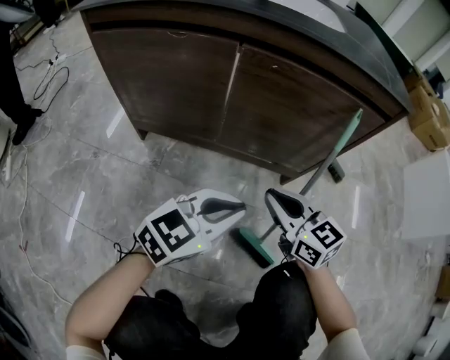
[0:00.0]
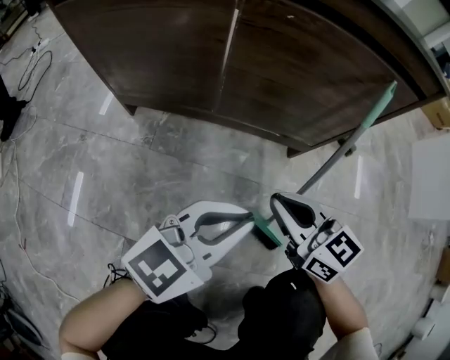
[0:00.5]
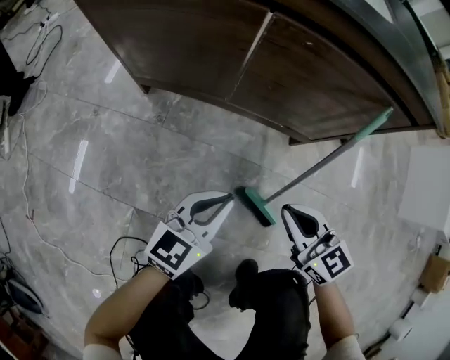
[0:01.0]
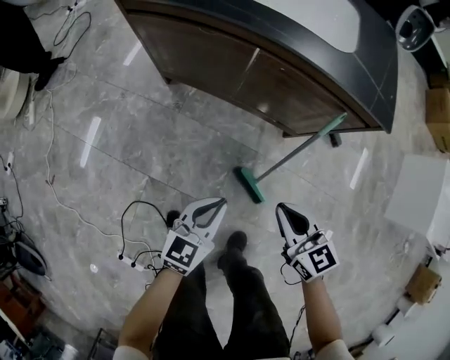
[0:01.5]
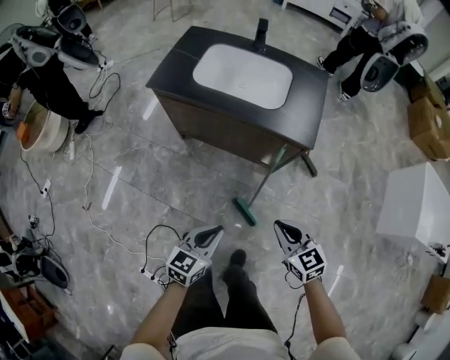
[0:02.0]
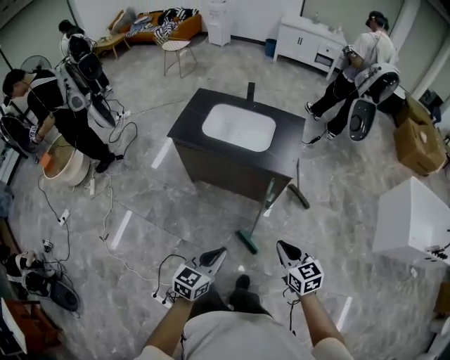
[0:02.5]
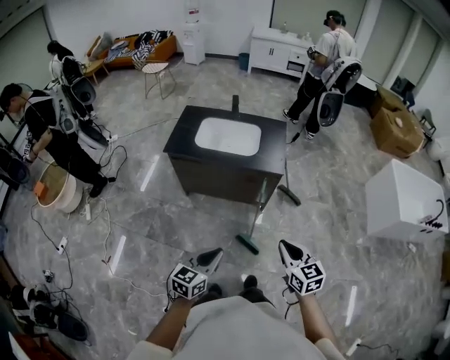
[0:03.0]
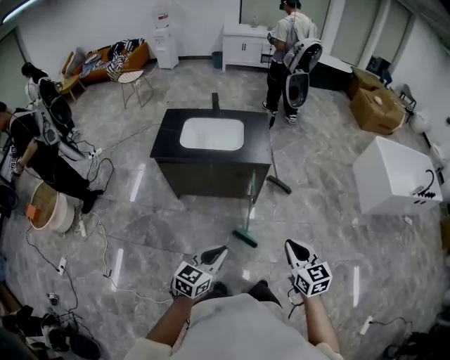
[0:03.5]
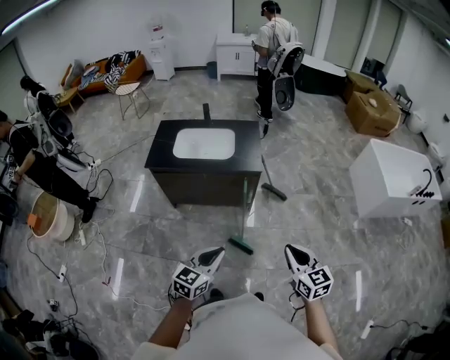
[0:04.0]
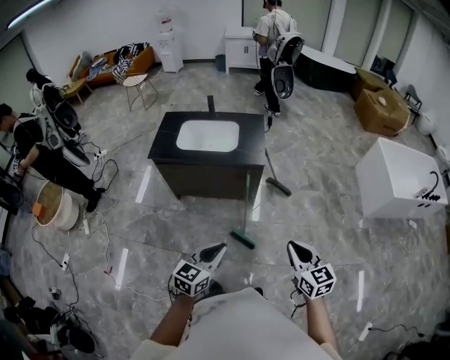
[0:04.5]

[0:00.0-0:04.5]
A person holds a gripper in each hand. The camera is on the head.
0:00.0 to 0:02.0: The two grippers go some 40 cm upward. The left gripper swivels roughly 40 degrees.
0:02.0 to 0:04.5: The right gripper heads upward, backward and to the right, covering some 40 cm, and swivels about 30 degrees. The left gripper moves upward and backward, approximately 35 cm.

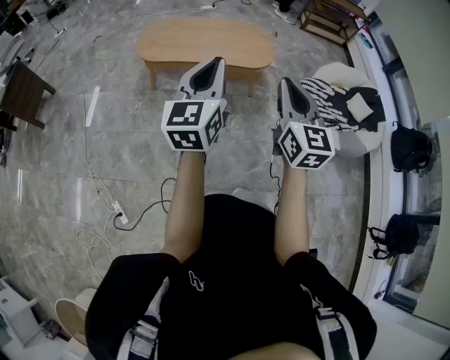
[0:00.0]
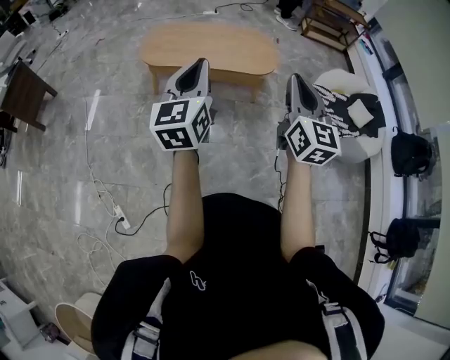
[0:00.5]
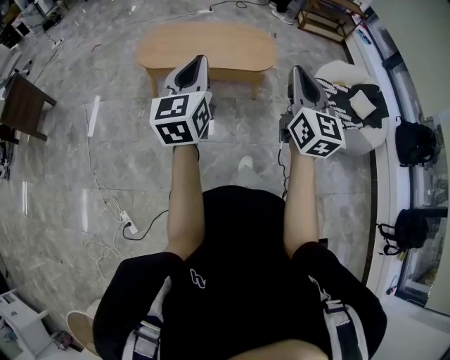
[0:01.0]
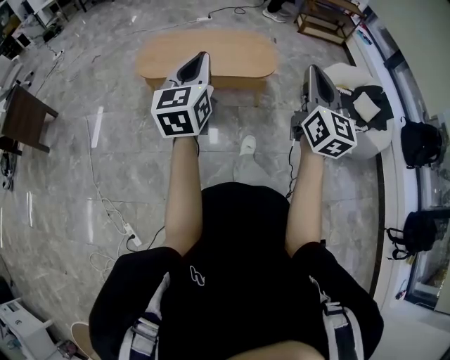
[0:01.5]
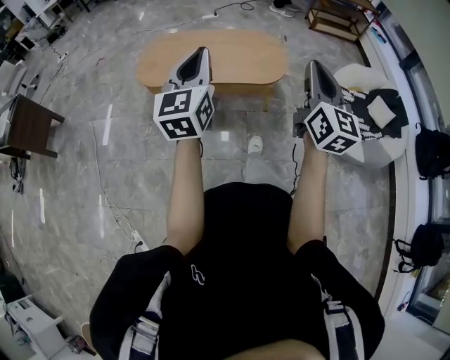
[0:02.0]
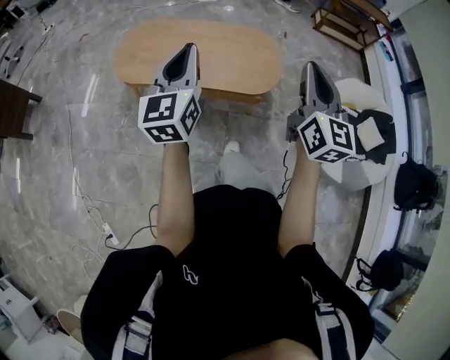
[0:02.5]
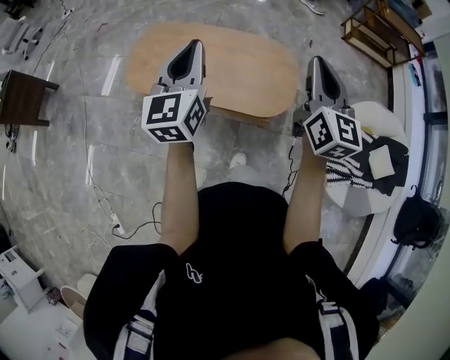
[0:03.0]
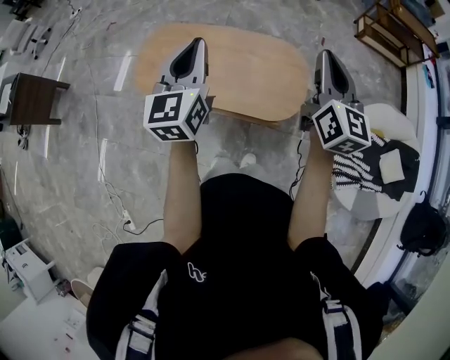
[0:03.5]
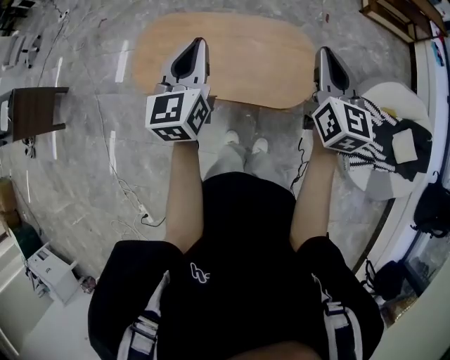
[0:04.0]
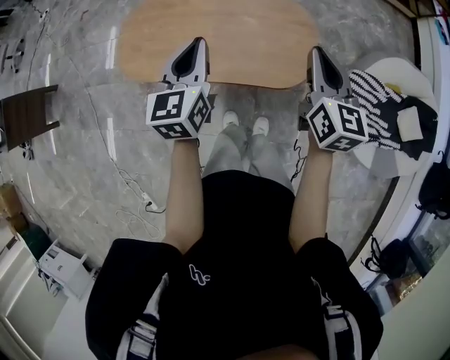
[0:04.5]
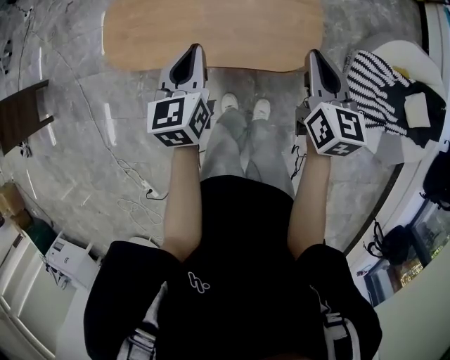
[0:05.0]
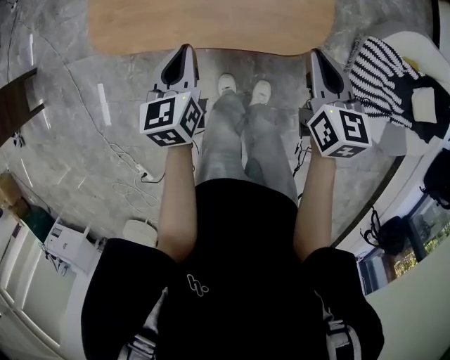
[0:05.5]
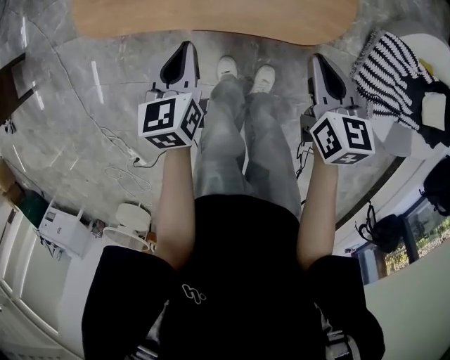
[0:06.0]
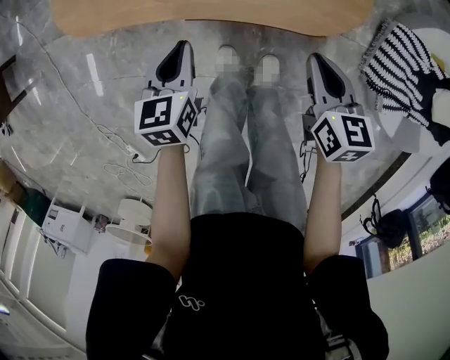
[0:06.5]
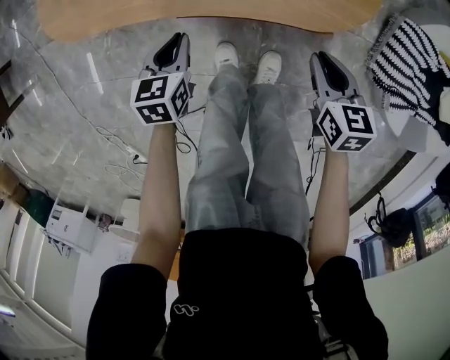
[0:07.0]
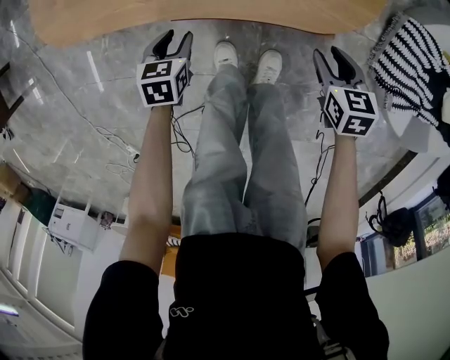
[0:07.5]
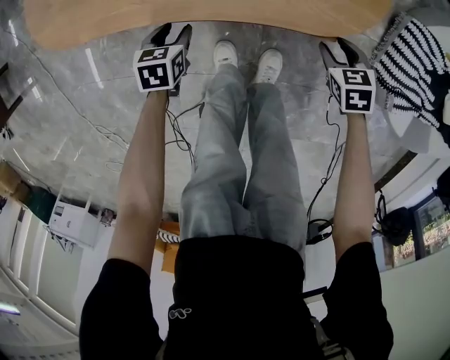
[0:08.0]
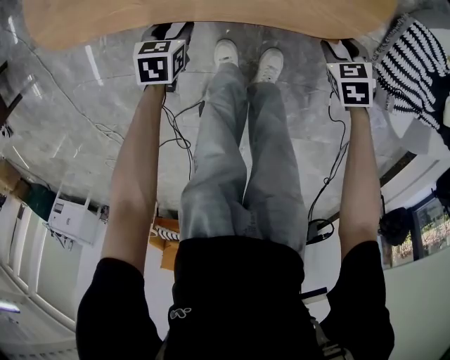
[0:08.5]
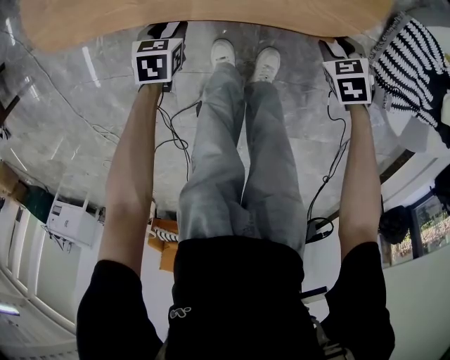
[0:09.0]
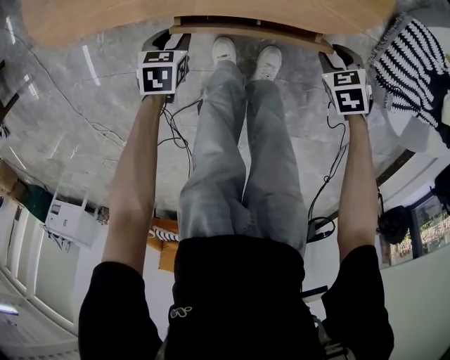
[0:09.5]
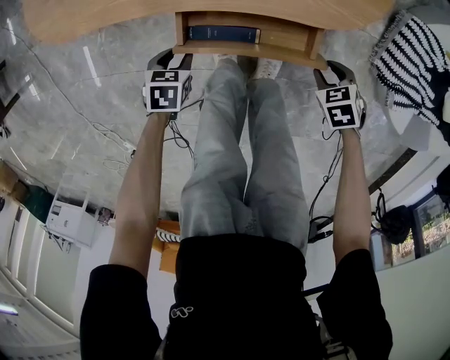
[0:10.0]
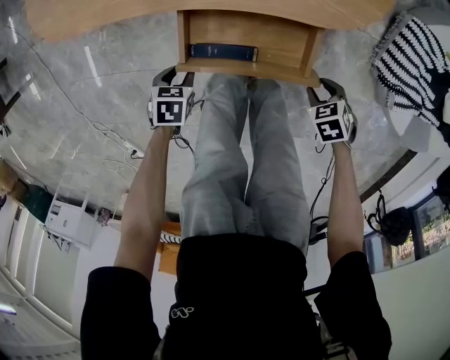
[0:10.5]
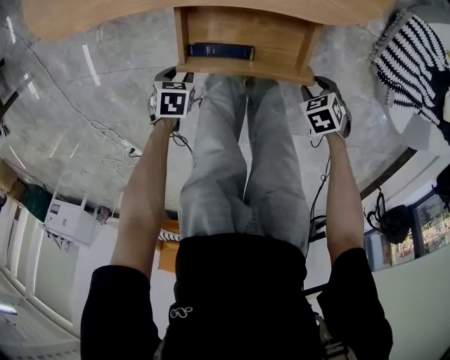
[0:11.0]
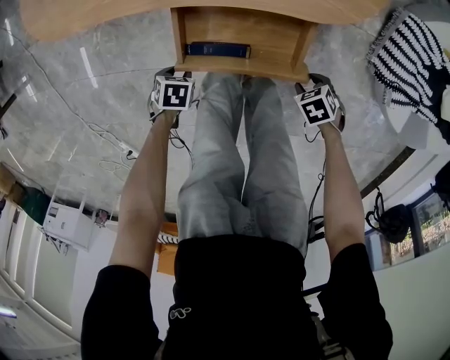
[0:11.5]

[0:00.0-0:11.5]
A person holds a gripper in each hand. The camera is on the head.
0:00.0 to 0:02.0: The two grippers go approximately 20 cm forward.
0:02.0 to 0:04.0: The pair of grippers is taken forward, about 50 cm.
0:04.0 to 0:06.0: Both grippers move downward, some 35 cm. The right gripper rotates approximately 30 degrees, while the left gripper swivels approximately 30 degrees.
0:06.0 to 0:07.5: The two grippers go about 25 cm downward. The left gripper rotates some 30 degrees, and opens its fingers, while the right gripper turns by about 20 degrees, and opens.
0:07.5 to 0:09.5: The right gripper goes roughly 5 cm downward, and turns by approximately 30 degrees.
0:09.5 to 0:11.5: The right gripper ends up approximately 15 cm from where it was. Meanwhile the left gripper moves approximately 15 cm, and swivels approximately 20 degrees.

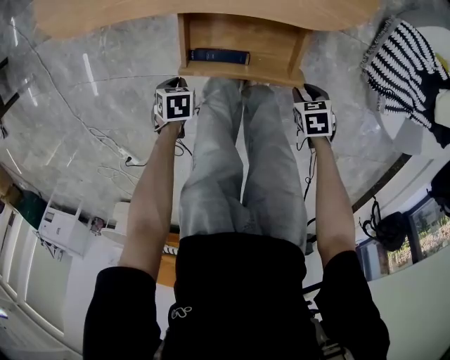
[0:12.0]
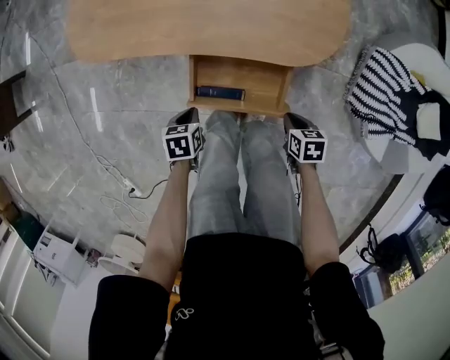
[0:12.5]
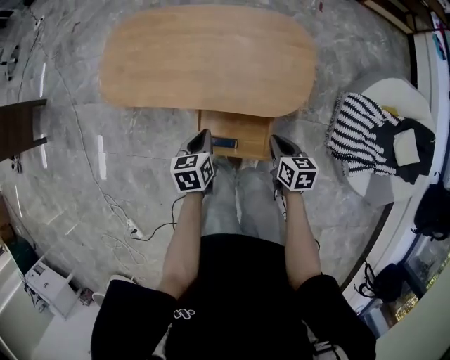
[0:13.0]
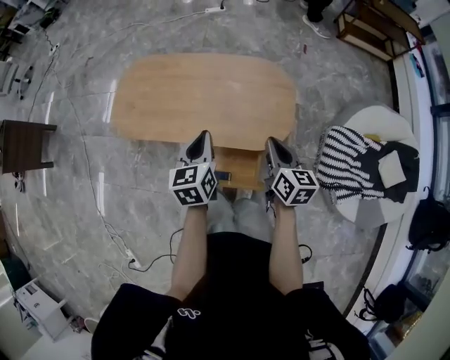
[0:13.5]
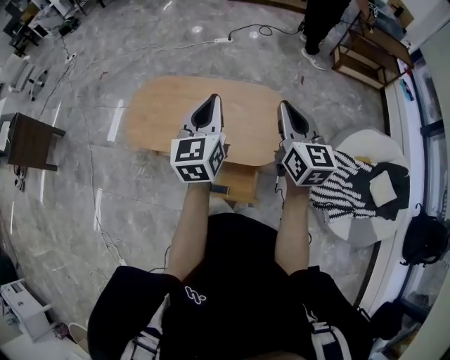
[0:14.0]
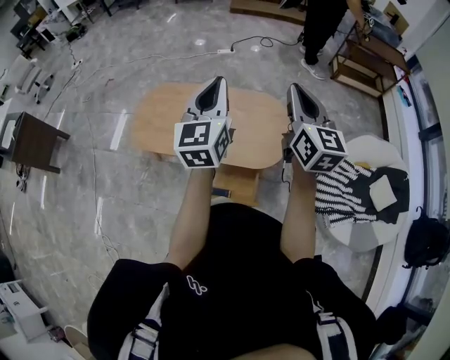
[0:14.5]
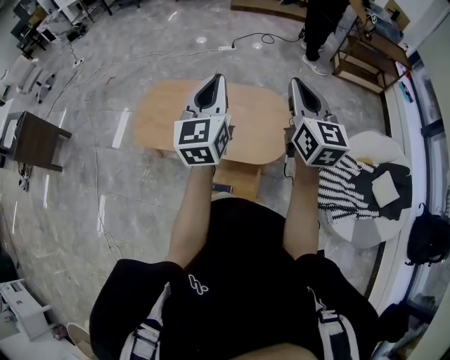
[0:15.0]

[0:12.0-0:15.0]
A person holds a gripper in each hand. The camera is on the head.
0:12.0 to 0:13.5: Both grippers travel together upward, some 50 cm. The left gripper points its fingers some 60 degrees further upward. The right gripper points its fingers some 50 degrees further upward, and closes.
0:13.5 to 0:15.0: The grippers both shift upward by some 30 cm. The left gripper rotates some 30 degrees. The right gripper swivels approximately 30 degrees.

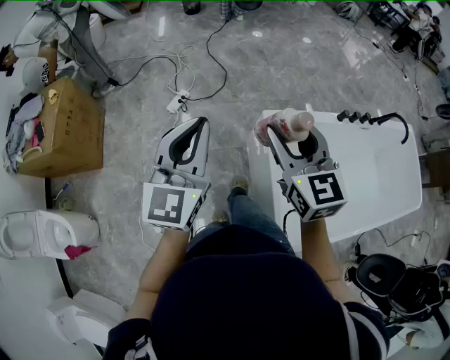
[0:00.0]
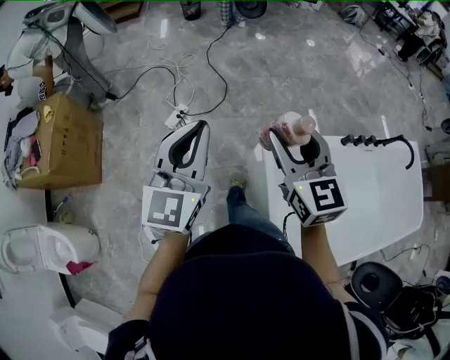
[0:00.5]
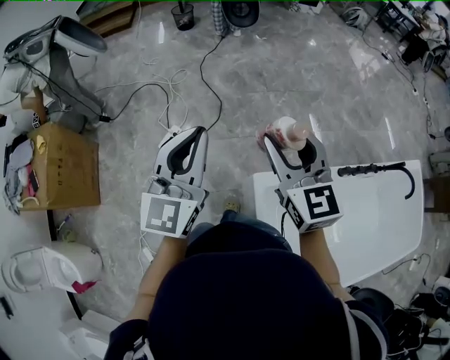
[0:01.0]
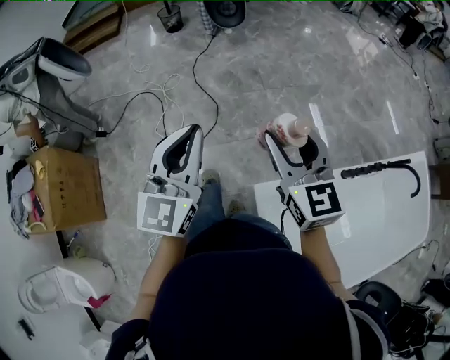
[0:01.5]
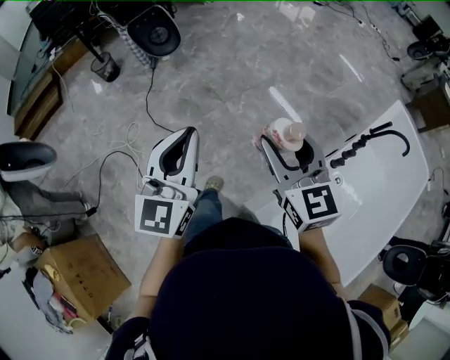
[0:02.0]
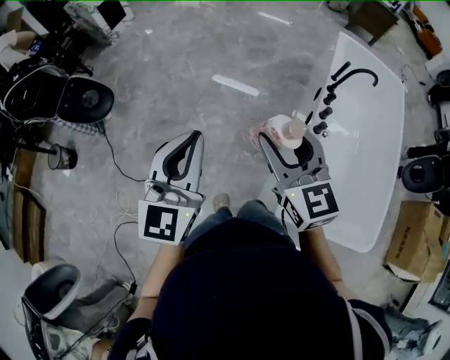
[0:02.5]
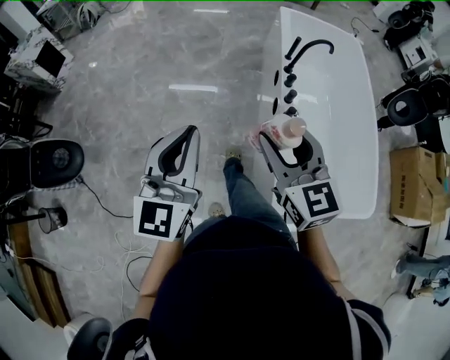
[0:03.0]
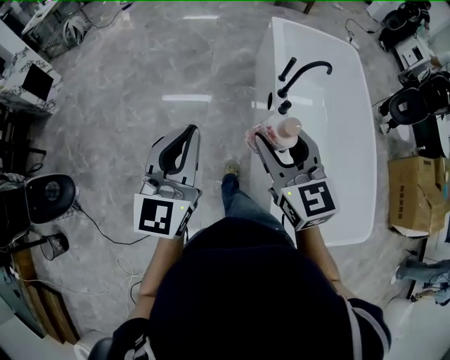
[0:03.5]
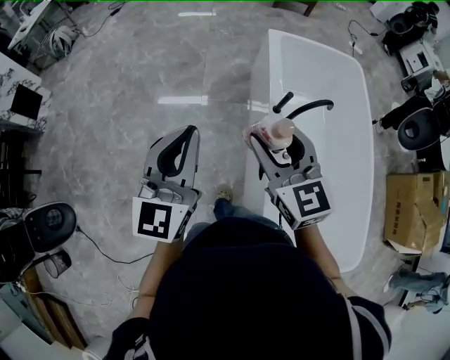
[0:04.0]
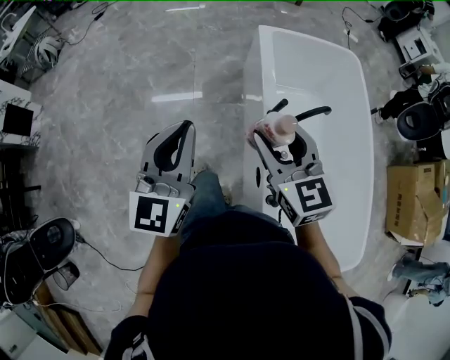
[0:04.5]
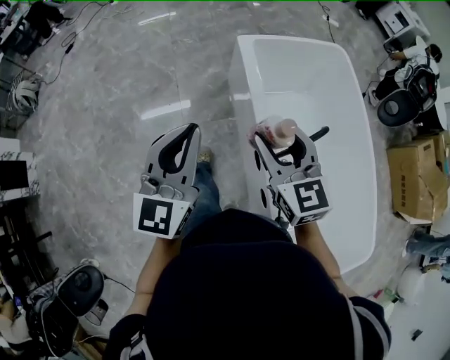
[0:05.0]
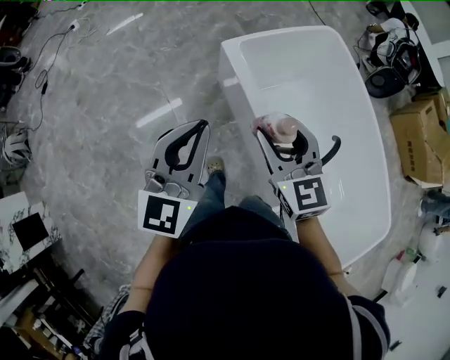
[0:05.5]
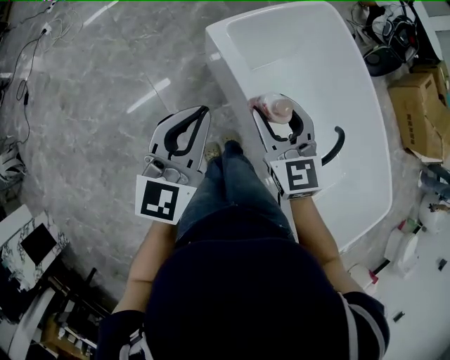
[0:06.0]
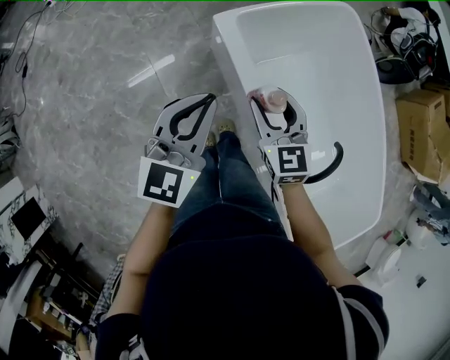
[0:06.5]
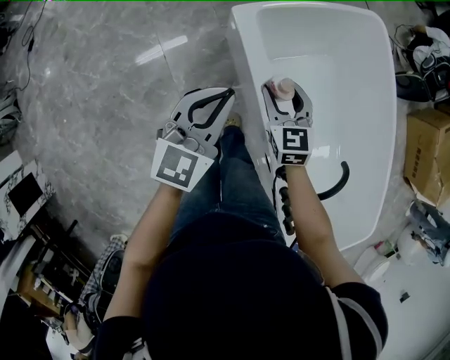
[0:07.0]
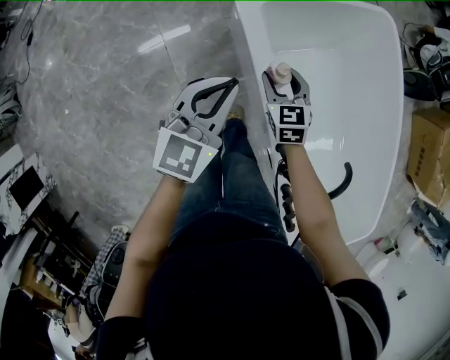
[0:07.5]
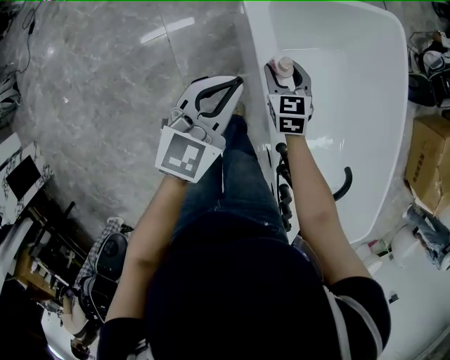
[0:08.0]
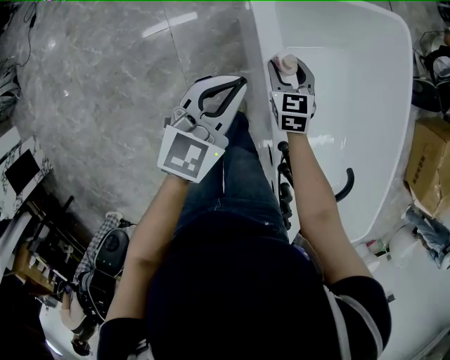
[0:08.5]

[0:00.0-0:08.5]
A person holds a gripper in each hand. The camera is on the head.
0:00.0 to 0:02.0: The two grippers travel together, about 60 cm. The right gripper swivels about 30 degrees; the left gripper turns by some 30 degrees.
0:02.0 to 0:04.0: The pair of grippers is taken some 60 cm. The left gripper rotates about 50 degrees, while the right gripper changes its angle by roughly 50 degrees.
0:04.0 to 0:06.5: The two grippers travel together, some 50 cm. The left gripper rotates roughly 40 degrees. Meanwhile the right gripper rotates some 40 degrees.
0:06.5 to 0:08.5: The left gripper moves downward and forward, approximately 15 cm, while the right gripper shifts roughly 20 cm downward and forward.
